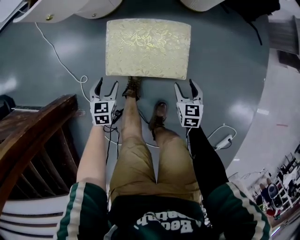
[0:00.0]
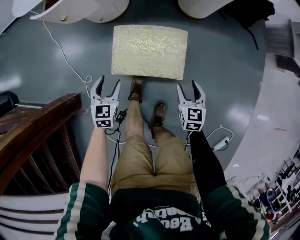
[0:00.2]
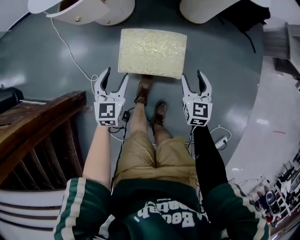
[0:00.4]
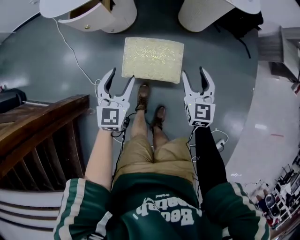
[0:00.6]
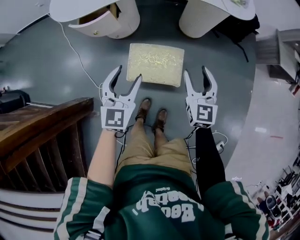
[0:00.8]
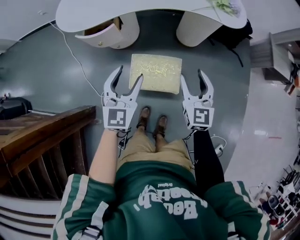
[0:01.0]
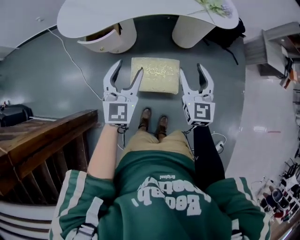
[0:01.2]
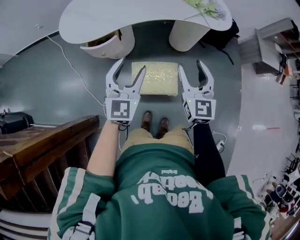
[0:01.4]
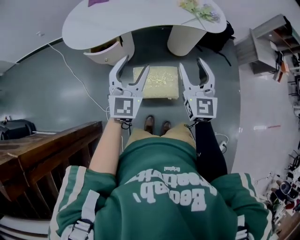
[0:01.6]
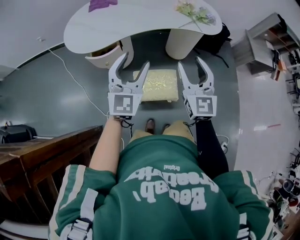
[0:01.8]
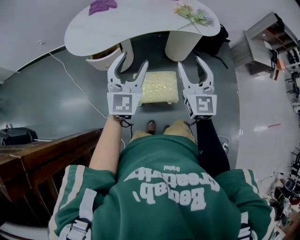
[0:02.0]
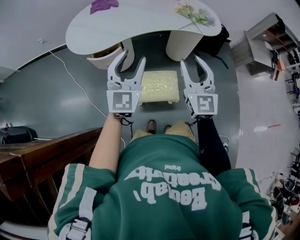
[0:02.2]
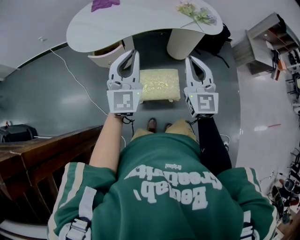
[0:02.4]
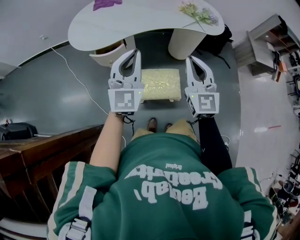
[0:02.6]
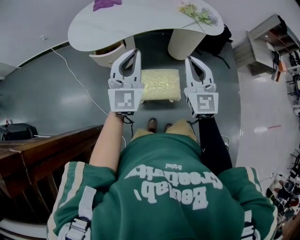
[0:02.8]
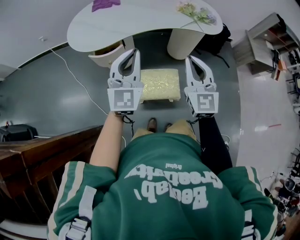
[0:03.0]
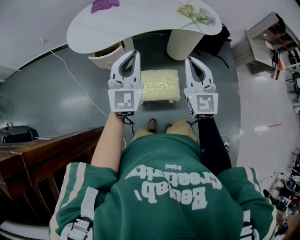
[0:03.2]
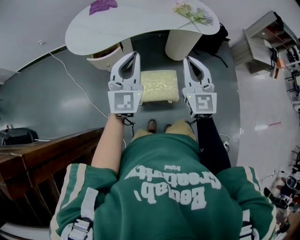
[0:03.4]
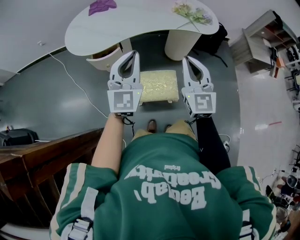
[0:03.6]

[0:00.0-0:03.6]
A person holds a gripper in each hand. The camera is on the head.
0.0 to 1.8 s: The grippers both shift upward by approximately 60 cm. The left gripper points its fingers about 50 degrees further upward; the right gripper points its fingers some 40 degrees further upward.
1.8 to 3.6 s: The left gripper closes; the right gripper closes up.

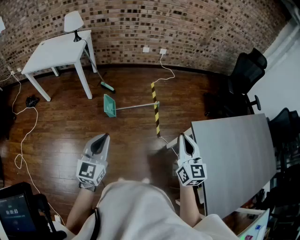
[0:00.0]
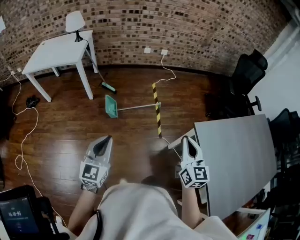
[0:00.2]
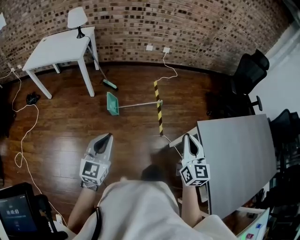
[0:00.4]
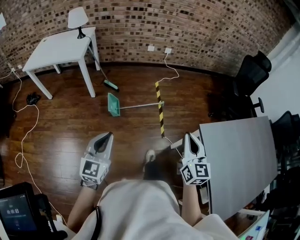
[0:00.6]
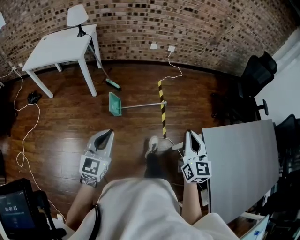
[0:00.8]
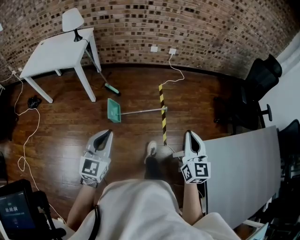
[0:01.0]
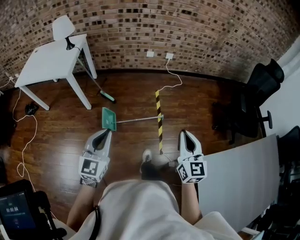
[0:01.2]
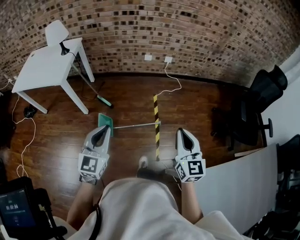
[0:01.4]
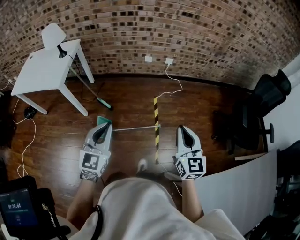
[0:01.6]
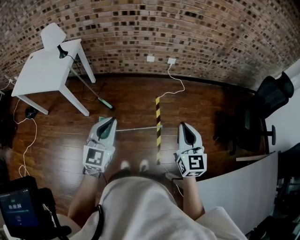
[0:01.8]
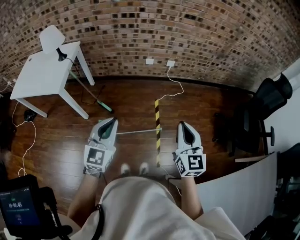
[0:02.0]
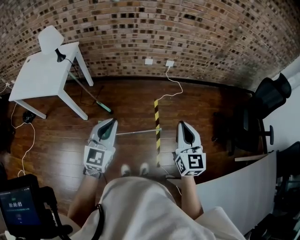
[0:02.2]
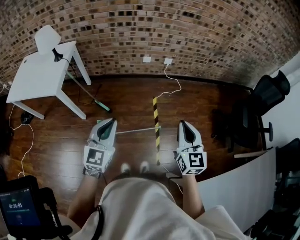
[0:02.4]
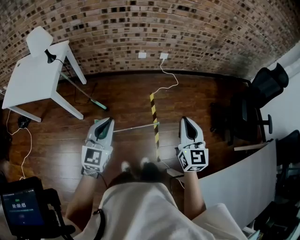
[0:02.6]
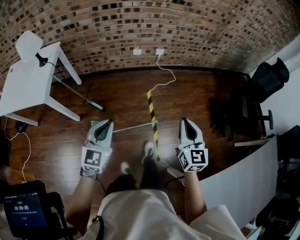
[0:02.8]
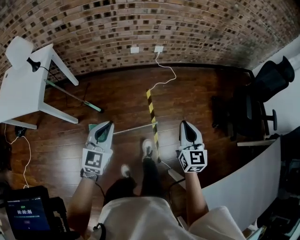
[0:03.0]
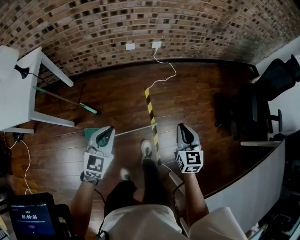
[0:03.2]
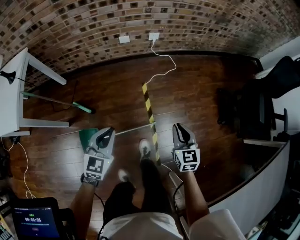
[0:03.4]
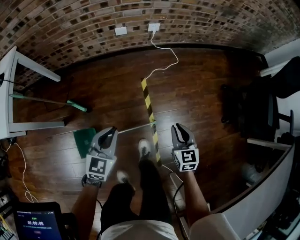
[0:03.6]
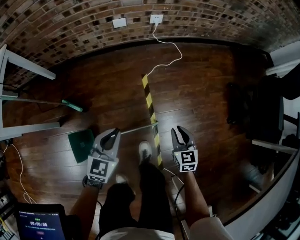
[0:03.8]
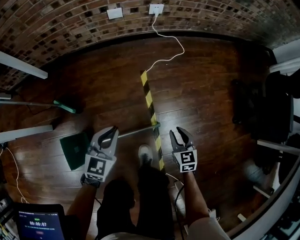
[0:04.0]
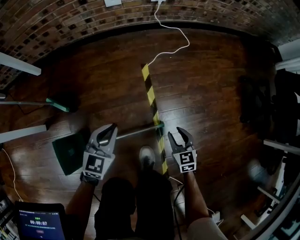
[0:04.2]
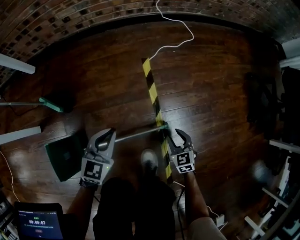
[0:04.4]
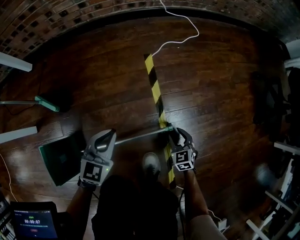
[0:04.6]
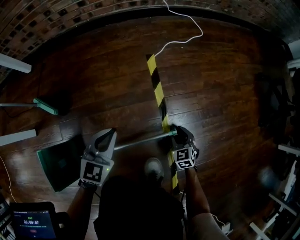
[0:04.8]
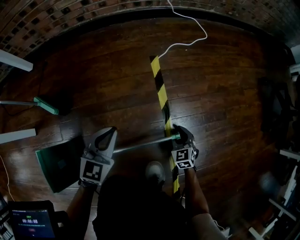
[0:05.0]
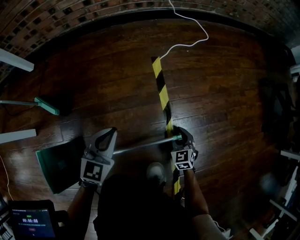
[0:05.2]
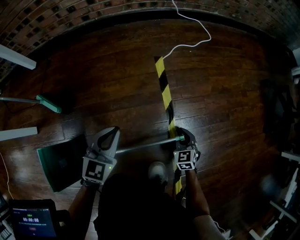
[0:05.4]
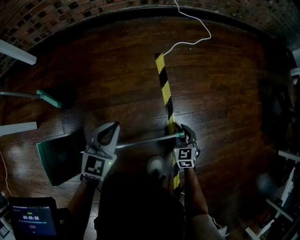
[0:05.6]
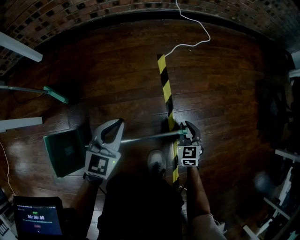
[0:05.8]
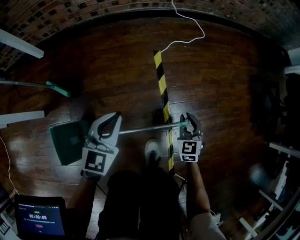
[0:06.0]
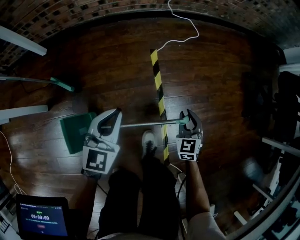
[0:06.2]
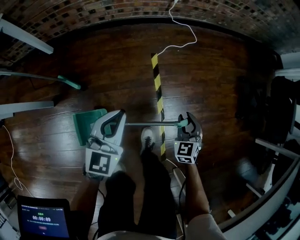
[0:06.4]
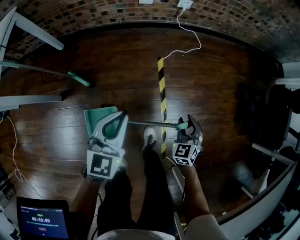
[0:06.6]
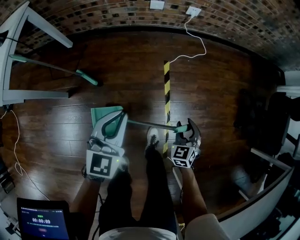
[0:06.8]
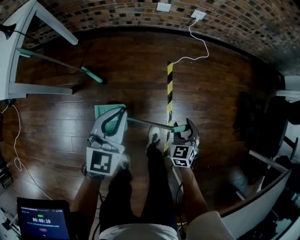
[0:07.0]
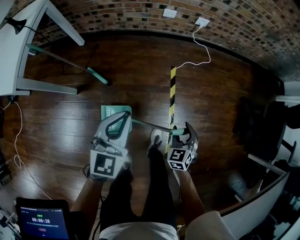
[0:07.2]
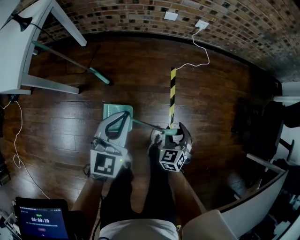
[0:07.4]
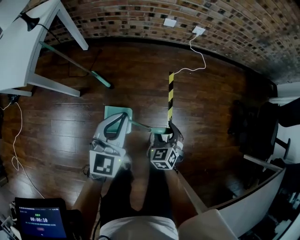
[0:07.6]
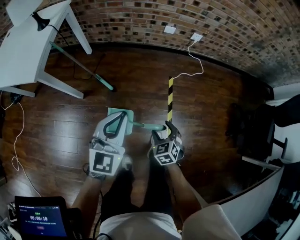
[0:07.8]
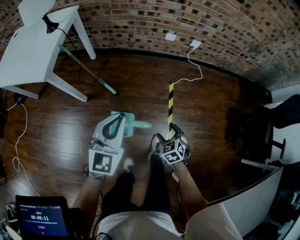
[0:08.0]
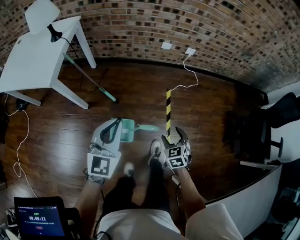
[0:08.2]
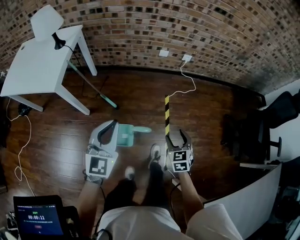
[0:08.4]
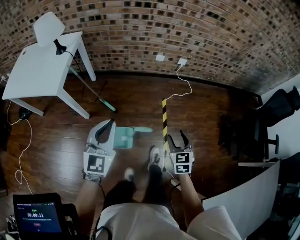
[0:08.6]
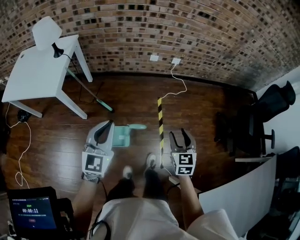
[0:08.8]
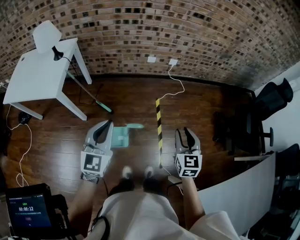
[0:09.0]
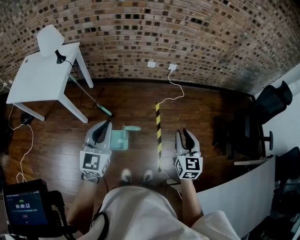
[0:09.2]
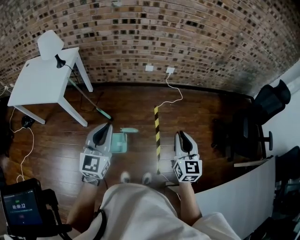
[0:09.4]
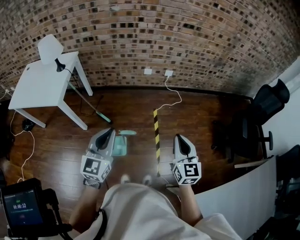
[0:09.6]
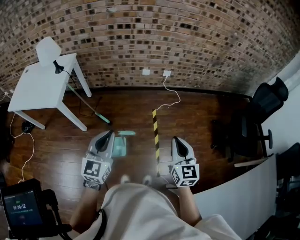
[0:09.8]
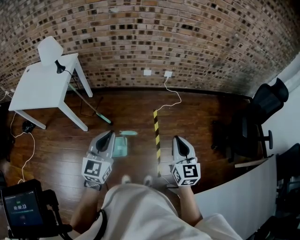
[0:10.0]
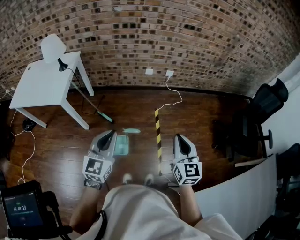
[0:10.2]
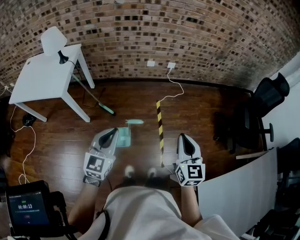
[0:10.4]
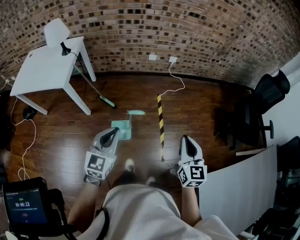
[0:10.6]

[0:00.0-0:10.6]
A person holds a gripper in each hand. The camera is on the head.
0.0 to 1.6 s: The two grippers travel together, forward, about 40 cm.
1.6 to 3.0 s: The grippers both shift forward and downward by roughly 20 cm.
3.0 to 4.6 s: The two grippers go about 70 cm downward. The right gripper angles its fingers downward, by approximately 30 degrees, and opens up.
4.6 to 6.0 s: Both grippers move upward, some 15 cm.
6.0 to 7.6 s: The left gripper is displaced upward by about 40 cm; the right gripper goes some 40 cm upward and to the left, and opens up.
7.6 to 9.0 s: The right gripper shifts about 35 cm upward, swivels some 30 degrees, and closes, while the left gripper moves upward and backward, about 25 cm.
9.0 to 10.6 s: The two grippers go about 15 cm backward. The right gripper closes its fingers.

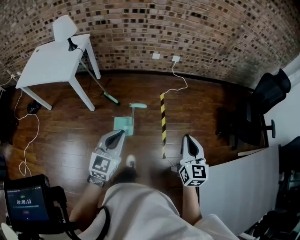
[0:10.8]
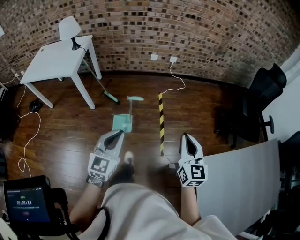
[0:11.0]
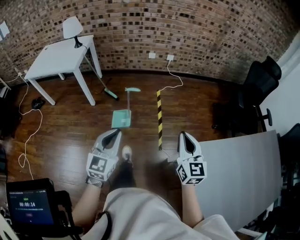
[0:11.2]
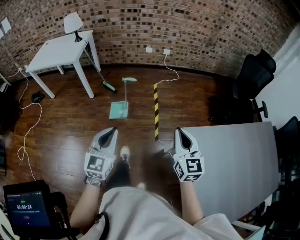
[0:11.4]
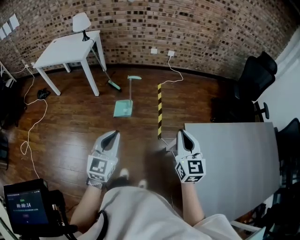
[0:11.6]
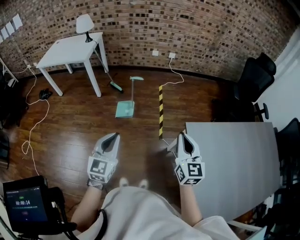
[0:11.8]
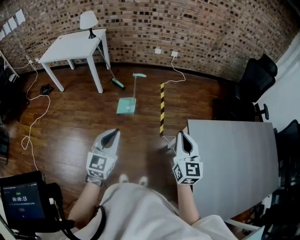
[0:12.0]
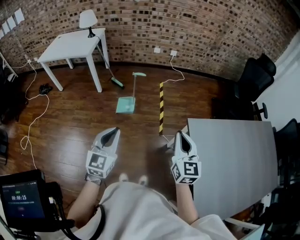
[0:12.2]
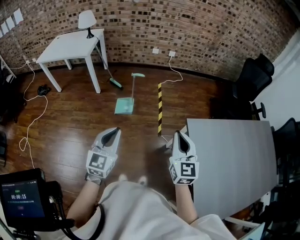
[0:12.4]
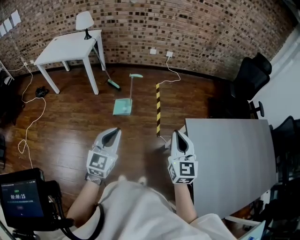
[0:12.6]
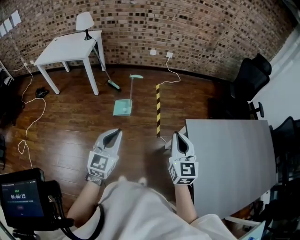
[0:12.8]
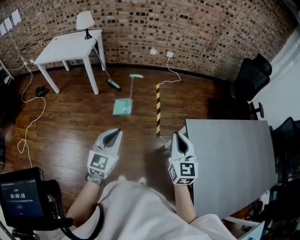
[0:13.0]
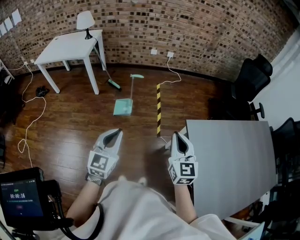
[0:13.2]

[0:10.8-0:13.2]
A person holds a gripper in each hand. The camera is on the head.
10.8 to 12.0 s: The two grippers go some 40 cm backward.
12.0 to 13.2 s: The grippers make only small movements.

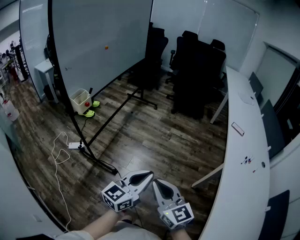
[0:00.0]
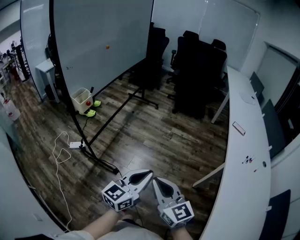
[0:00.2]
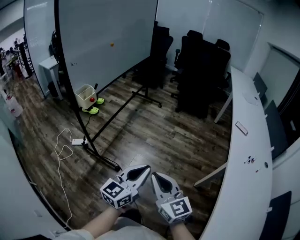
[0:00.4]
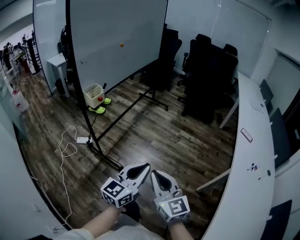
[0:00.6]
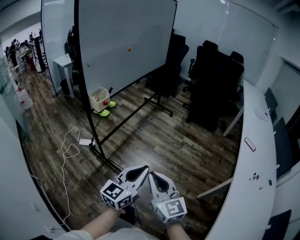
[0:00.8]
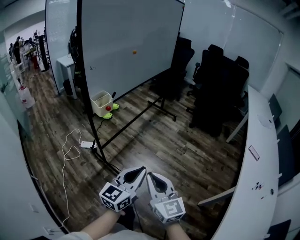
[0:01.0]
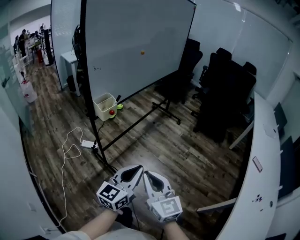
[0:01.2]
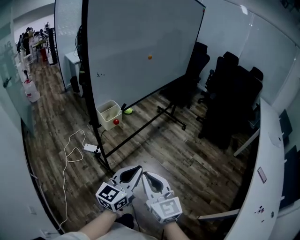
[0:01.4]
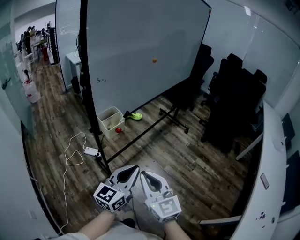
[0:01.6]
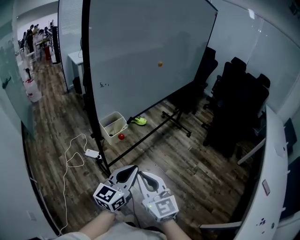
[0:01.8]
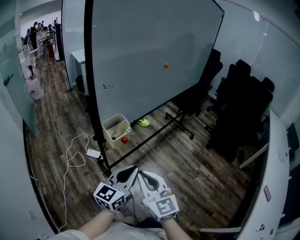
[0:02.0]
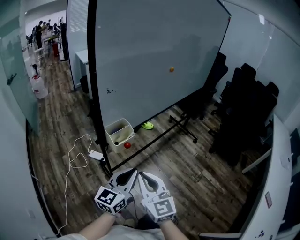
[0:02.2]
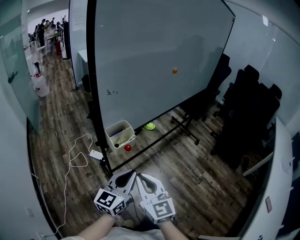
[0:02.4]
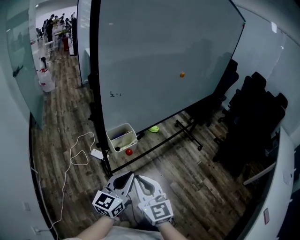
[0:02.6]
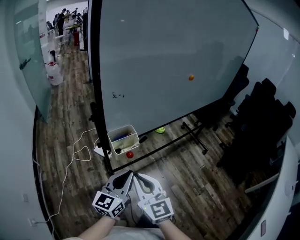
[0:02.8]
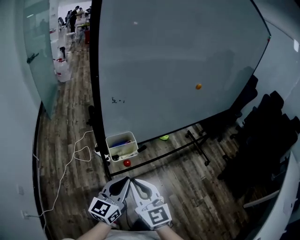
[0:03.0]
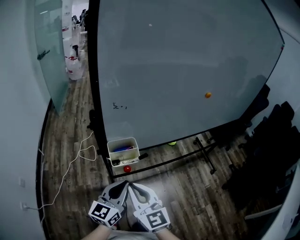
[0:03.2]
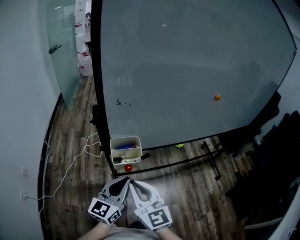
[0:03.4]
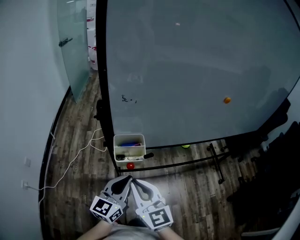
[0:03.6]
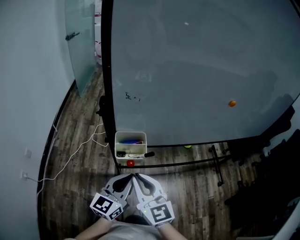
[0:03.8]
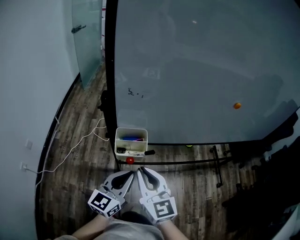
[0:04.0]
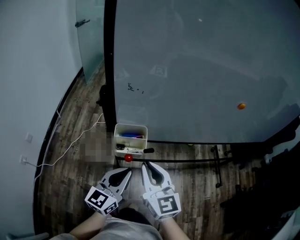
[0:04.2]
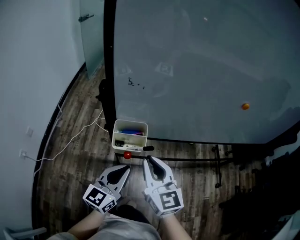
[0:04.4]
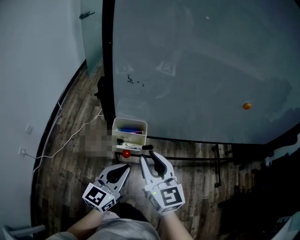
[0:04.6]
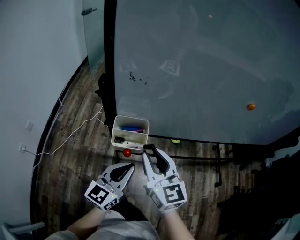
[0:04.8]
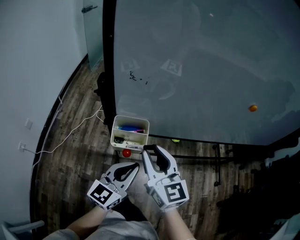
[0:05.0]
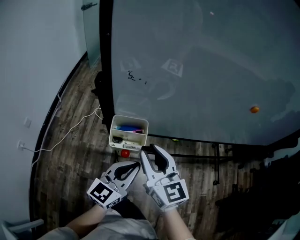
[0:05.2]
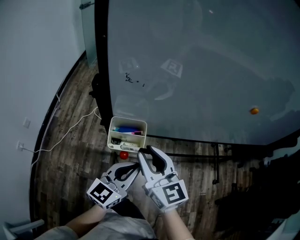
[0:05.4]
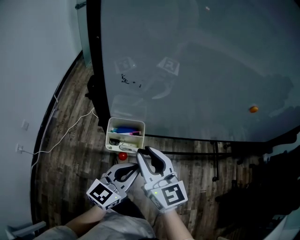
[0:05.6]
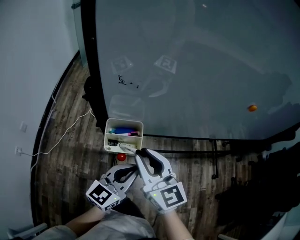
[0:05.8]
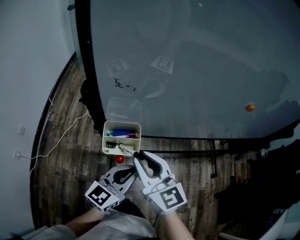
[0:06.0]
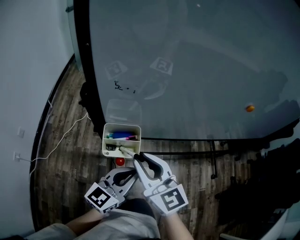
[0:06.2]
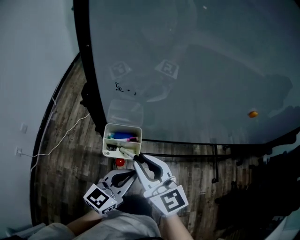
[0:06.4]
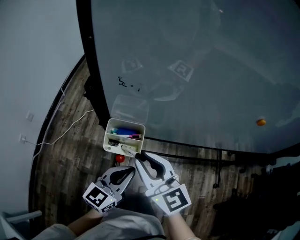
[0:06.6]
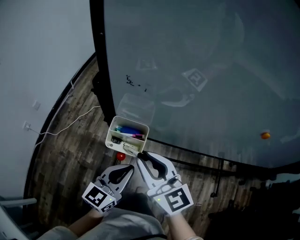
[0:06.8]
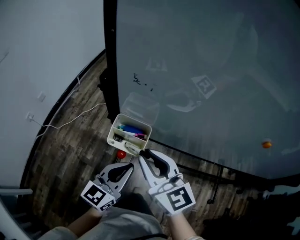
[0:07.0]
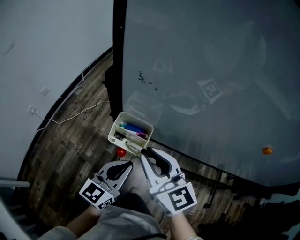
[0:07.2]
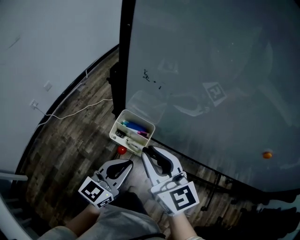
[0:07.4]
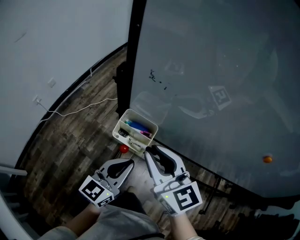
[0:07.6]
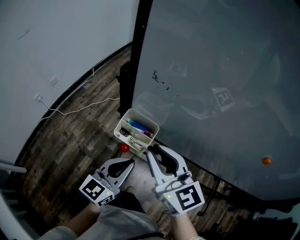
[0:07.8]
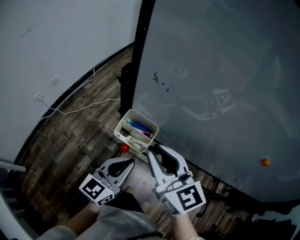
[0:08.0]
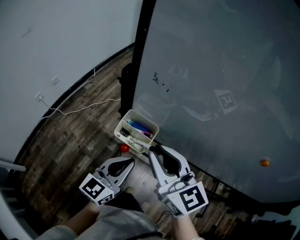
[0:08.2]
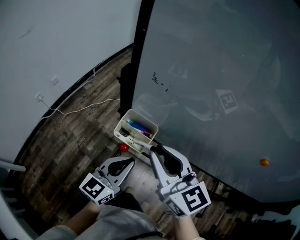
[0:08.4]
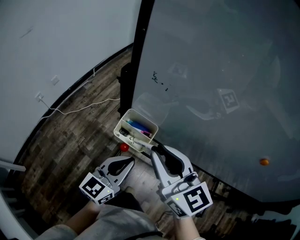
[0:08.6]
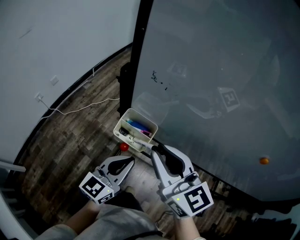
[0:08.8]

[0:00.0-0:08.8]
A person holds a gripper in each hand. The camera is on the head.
0.0 to 1.4 s: Both grippers travel together forward and to the left, approximately 30 cm. The left gripper changes its angle by some 30 degrees.
1.4 to 3.0 s: The right gripper changes place by roughly 30 cm, and turns by roughly 30 degrees. Meanwhile the left gripper moves approximately 25 cm, and turns by approximately 30 degrees.
3.0 to 4.4 s: The left gripper ends up approximately 5 cm from where it was, and changes its angle by approximately 20 degrees; the right gripper goes roughly 10 cm forward and to the right.
4.4 to 5.8 s: The left gripper shifts about 5 cm to the right.
5.8 to 7.4 s: The left gripper swivels some 30 degrees, while the right gripper swivels approximately 30 degrees.
7.4 to 8.8 s: The right gripper ends up roughly 5 cm from where it was.
